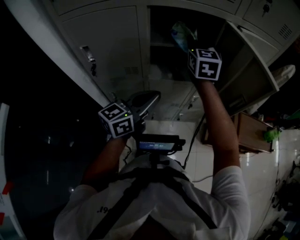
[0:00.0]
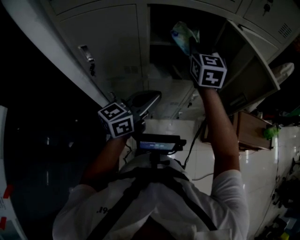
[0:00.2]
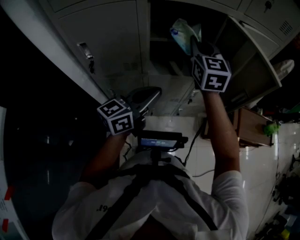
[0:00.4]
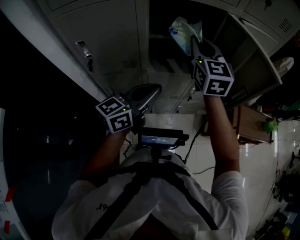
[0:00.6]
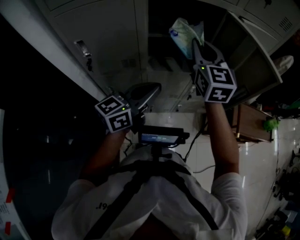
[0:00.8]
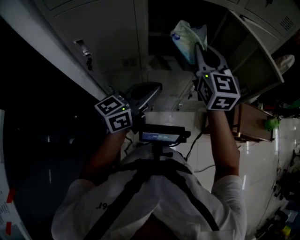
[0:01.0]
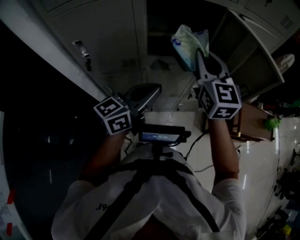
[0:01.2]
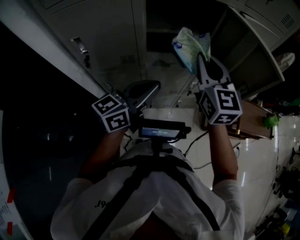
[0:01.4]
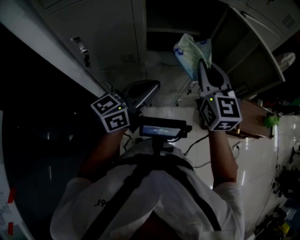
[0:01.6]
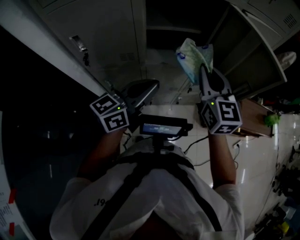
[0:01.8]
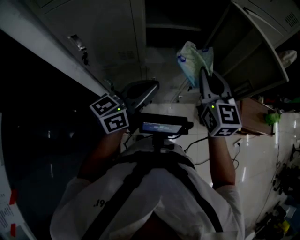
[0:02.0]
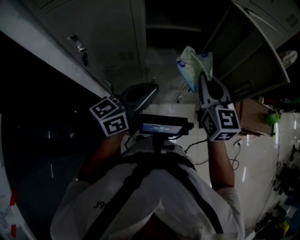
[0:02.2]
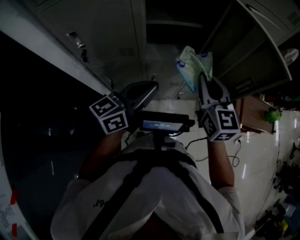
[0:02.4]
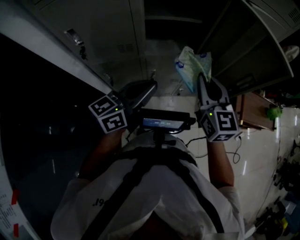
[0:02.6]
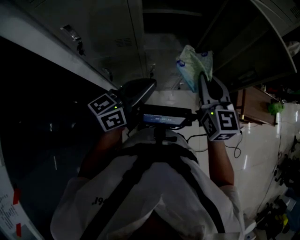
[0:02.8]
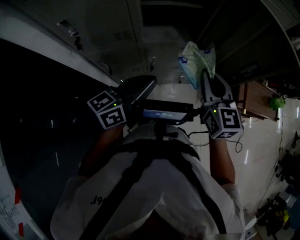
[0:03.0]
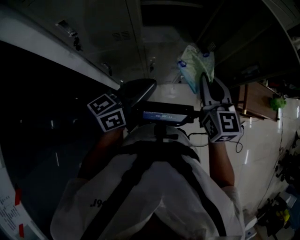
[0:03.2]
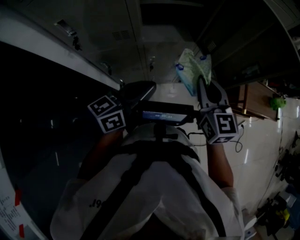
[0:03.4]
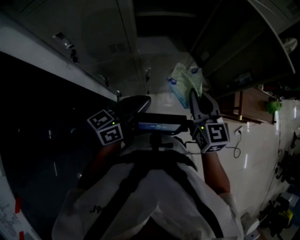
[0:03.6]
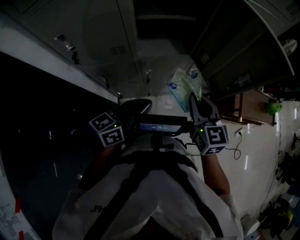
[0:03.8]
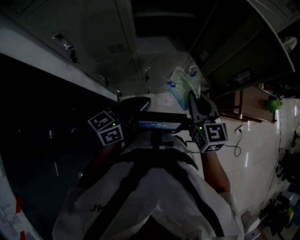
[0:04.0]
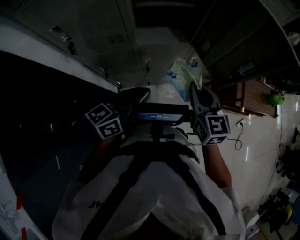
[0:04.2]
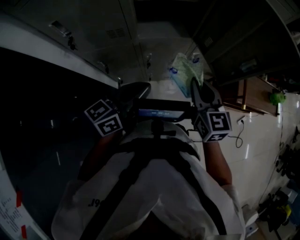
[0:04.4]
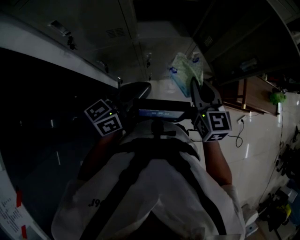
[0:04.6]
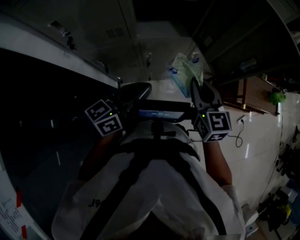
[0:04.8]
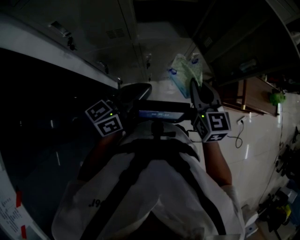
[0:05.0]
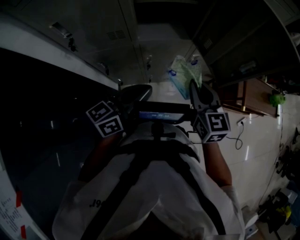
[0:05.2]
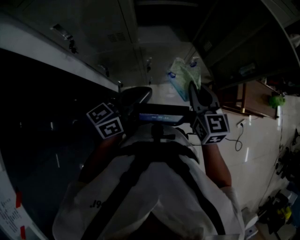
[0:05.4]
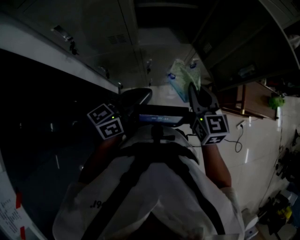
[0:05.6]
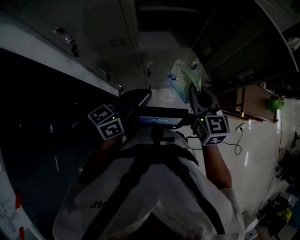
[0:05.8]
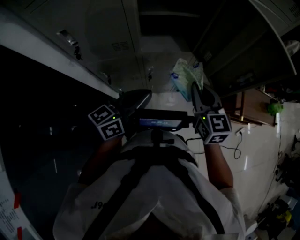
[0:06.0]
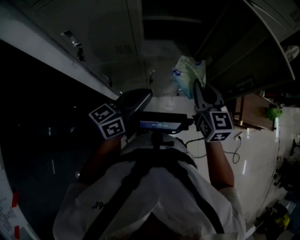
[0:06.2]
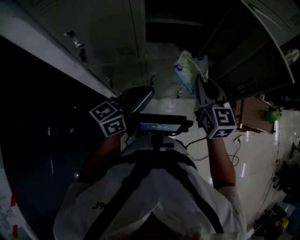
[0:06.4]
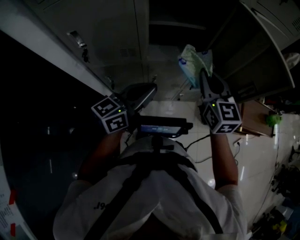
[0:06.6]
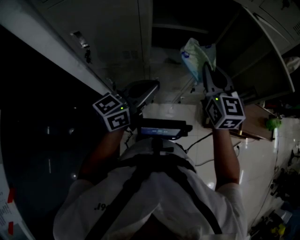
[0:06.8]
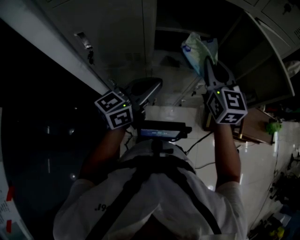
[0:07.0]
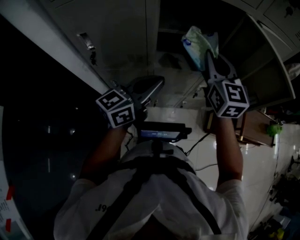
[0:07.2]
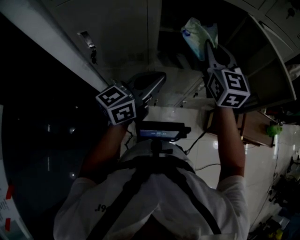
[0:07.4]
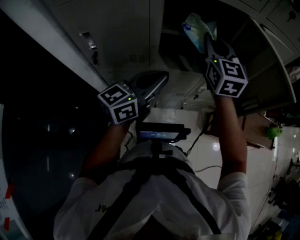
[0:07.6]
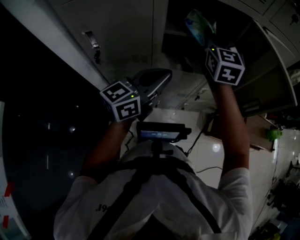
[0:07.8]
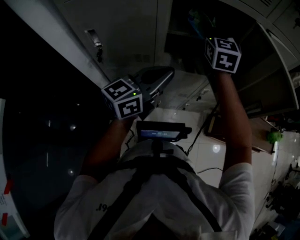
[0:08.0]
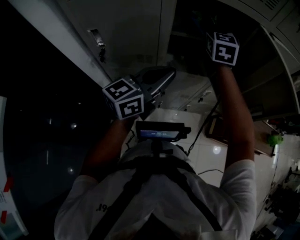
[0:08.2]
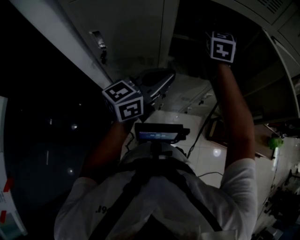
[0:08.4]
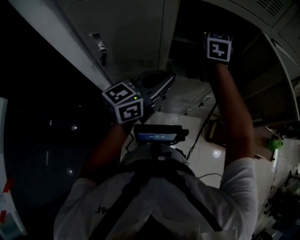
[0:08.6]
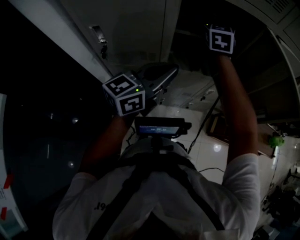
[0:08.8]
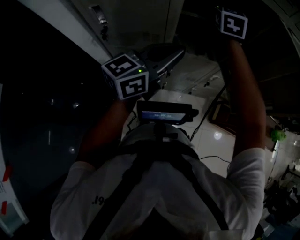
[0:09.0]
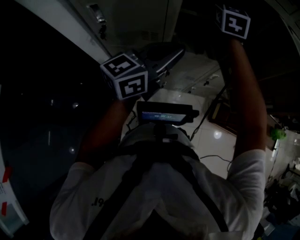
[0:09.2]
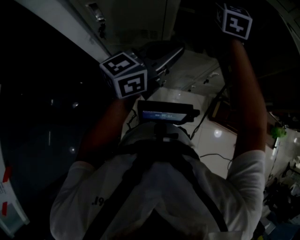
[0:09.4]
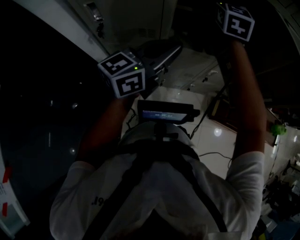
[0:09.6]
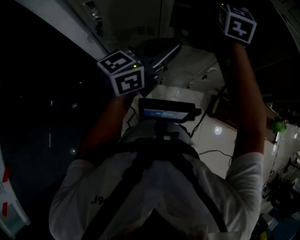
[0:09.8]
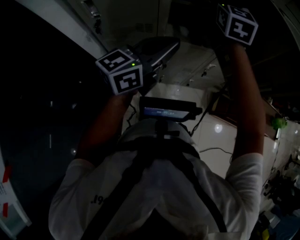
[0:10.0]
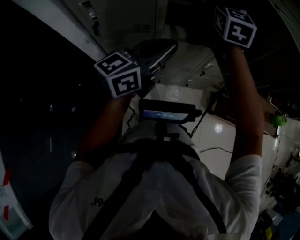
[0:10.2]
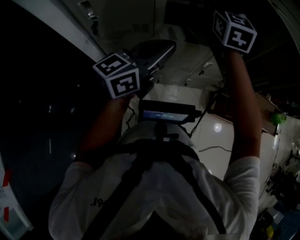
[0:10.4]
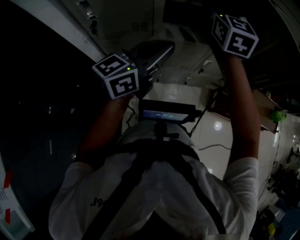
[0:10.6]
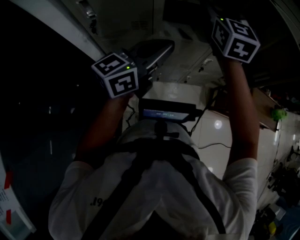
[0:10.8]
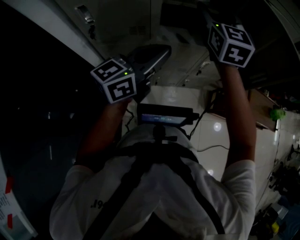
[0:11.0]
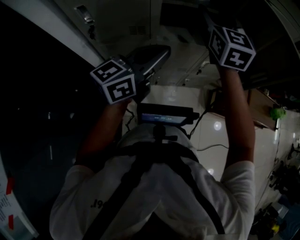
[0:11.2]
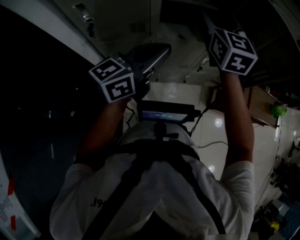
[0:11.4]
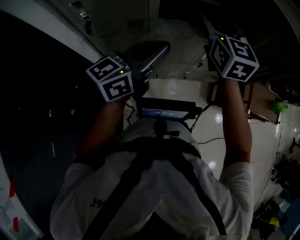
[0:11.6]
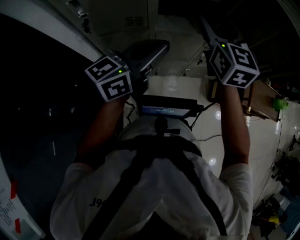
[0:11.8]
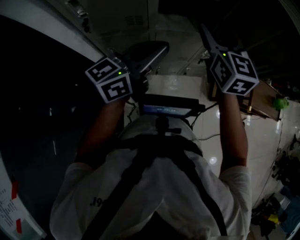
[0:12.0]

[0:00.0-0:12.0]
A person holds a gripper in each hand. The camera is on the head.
0:00.0 to 0:01.6: The right gripper moves backward and to the right, approximately 15 cm.
0:01.6 to 0:03.0: The right gripper is displaced downward and backward by some 10 cm, while the left gripper shifts some 5 cm downward.
0:03.0 to 0:04.4: The right gripper is displaced downward by roughly 5 cm.
0:04.4 to 0:06.0: The grippers move only a little.
0:06.0 to 0:07.6: The left gripper goes roughly 10 cm upward and forward; the right gripper goes roughly 25 cm forward, upward and to the left.
0:07.6 to 0:09.0: The right gripper moves forward and to the left, some 15 cm, and opens its fingers.
0:09.0 to 0:10.4: The right gripper travels backward by some 10 cm.
0:10.4 to 0:12.0: The right gripper moves backward and downward, about 10 cm.

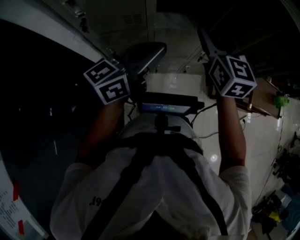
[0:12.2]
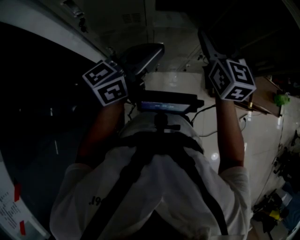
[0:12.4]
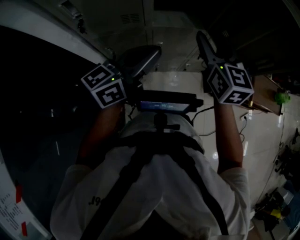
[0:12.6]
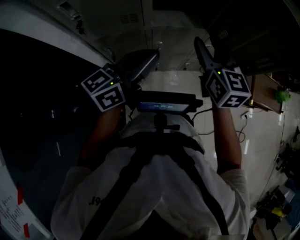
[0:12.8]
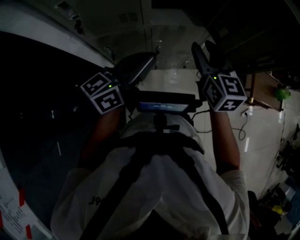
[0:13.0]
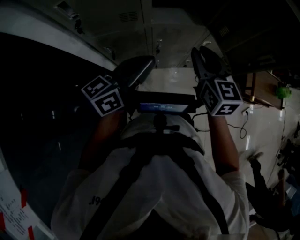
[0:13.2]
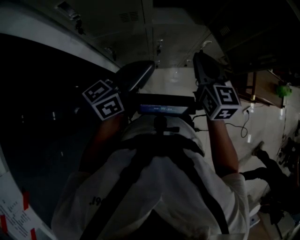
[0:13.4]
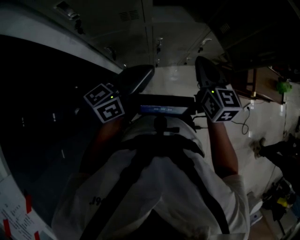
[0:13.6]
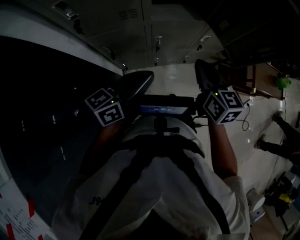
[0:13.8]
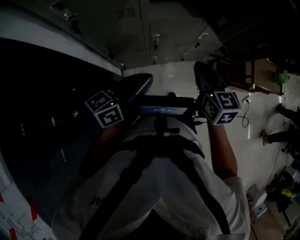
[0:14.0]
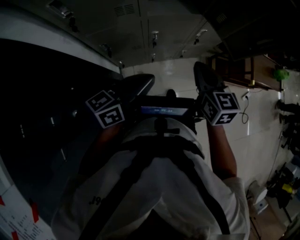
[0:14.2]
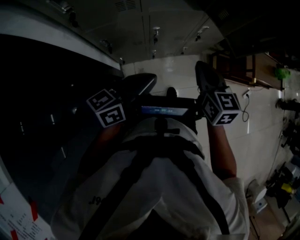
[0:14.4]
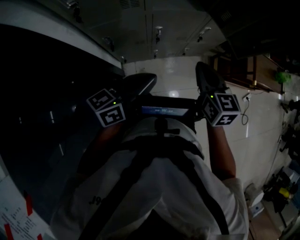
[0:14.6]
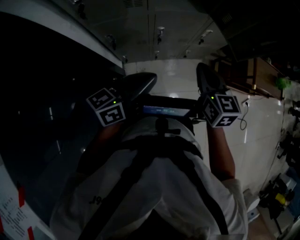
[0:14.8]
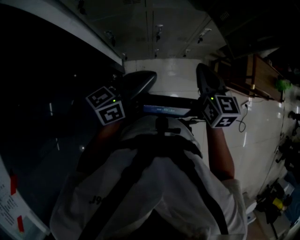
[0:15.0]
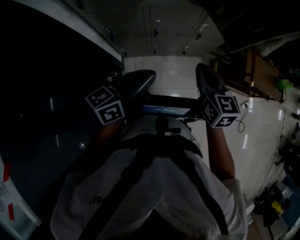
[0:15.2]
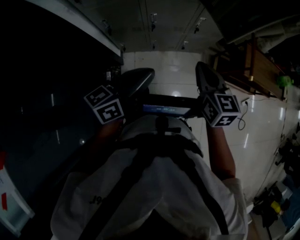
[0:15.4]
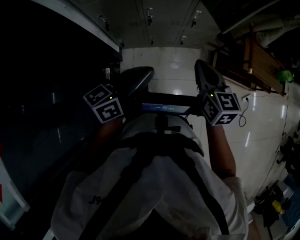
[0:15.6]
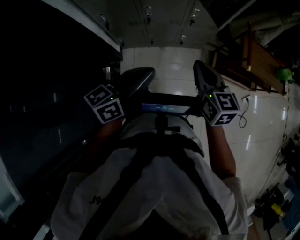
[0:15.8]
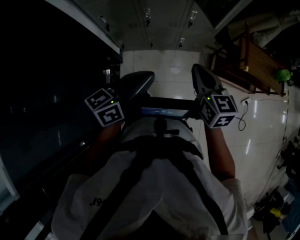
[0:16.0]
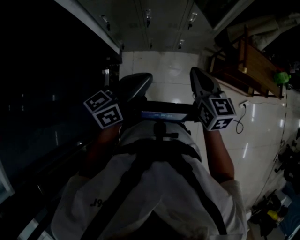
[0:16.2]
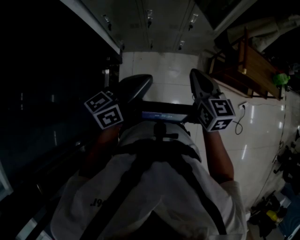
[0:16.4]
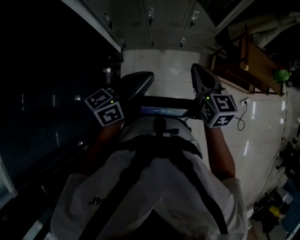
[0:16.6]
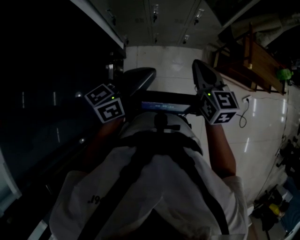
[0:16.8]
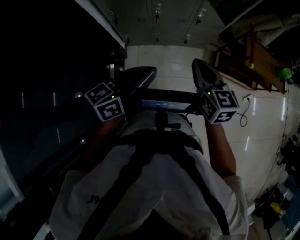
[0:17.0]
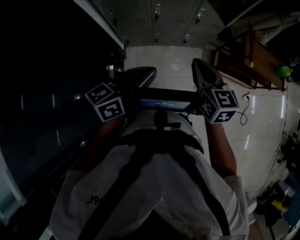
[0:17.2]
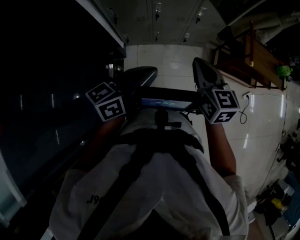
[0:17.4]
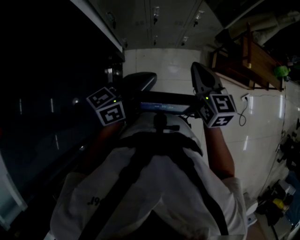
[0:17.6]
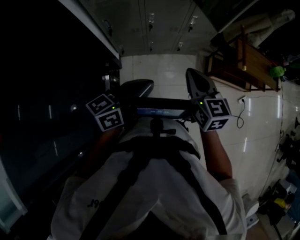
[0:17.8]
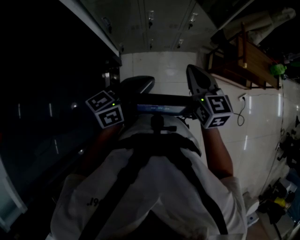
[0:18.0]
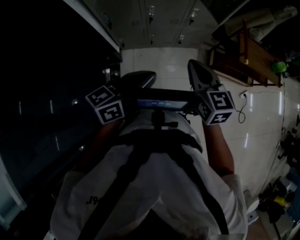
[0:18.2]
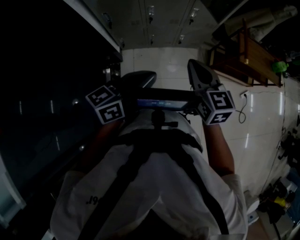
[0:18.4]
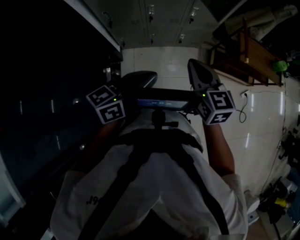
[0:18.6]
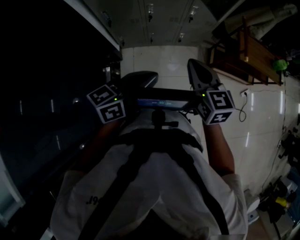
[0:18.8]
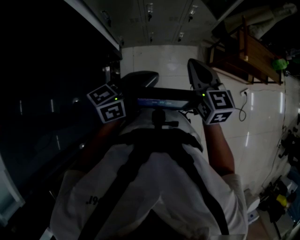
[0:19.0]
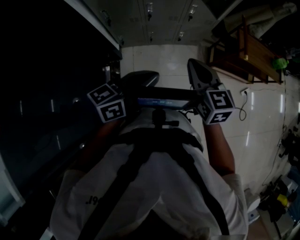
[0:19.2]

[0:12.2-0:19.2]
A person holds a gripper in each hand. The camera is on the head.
0:12.2 to 0:13.6: The left gripper moves downward and backward, approximately 10 cm. The right gripper moves downward and backward, approximately 15 cm, and closes its fingers.
0:13.6 to 0:15.0: The grippers both shift backward by about 5 cm.
0:15.0 to 0:16.4: The left gripper is displaced to the right and backward by some 20 cm; the right gripper travels backward and to the right by about 20 cm.
0:16.4 to 0:17.8: Both grippers move to the left, roughly 5 cm.
0:17.8 to 0:19.2: There are only small adjustments of the grippers.

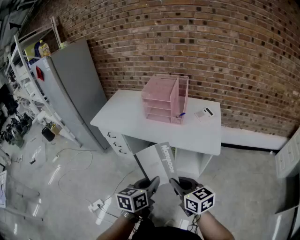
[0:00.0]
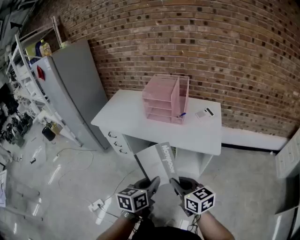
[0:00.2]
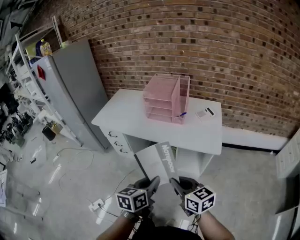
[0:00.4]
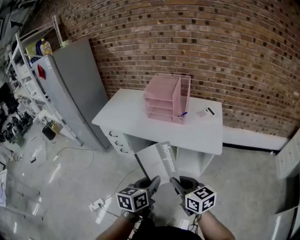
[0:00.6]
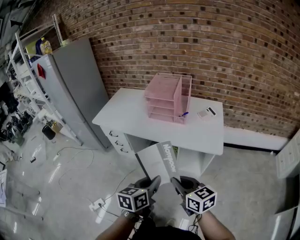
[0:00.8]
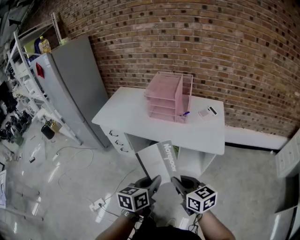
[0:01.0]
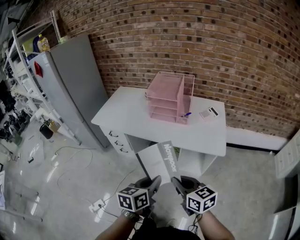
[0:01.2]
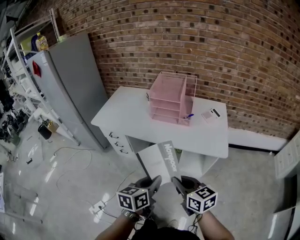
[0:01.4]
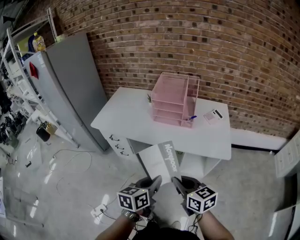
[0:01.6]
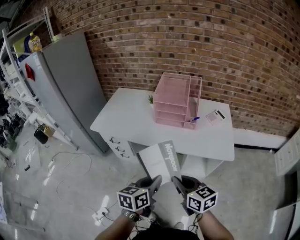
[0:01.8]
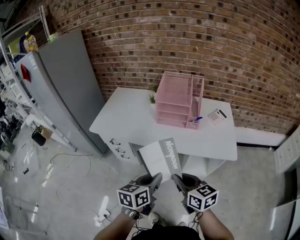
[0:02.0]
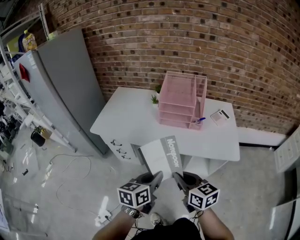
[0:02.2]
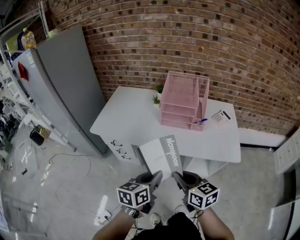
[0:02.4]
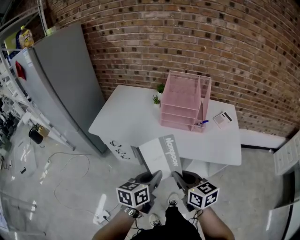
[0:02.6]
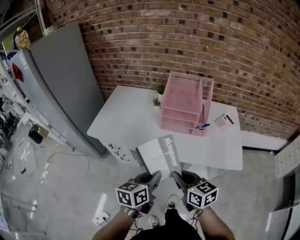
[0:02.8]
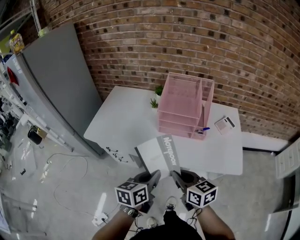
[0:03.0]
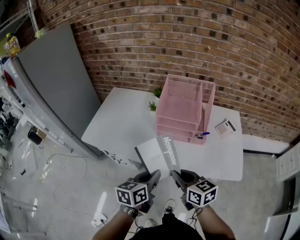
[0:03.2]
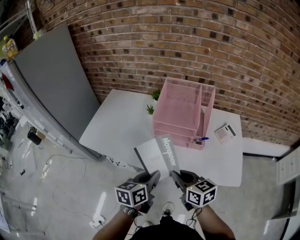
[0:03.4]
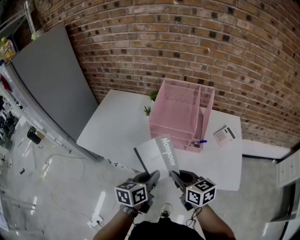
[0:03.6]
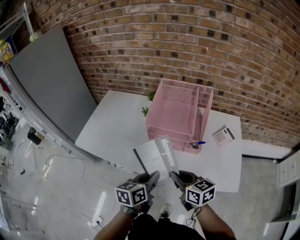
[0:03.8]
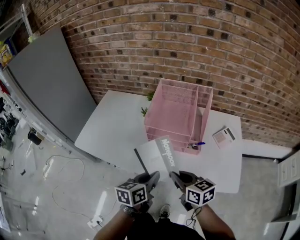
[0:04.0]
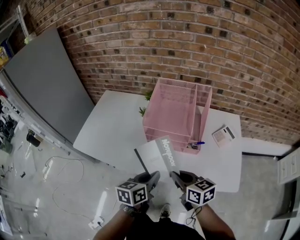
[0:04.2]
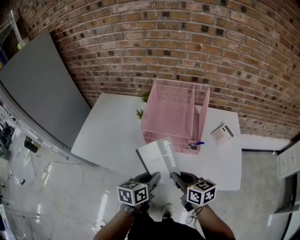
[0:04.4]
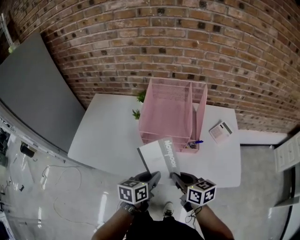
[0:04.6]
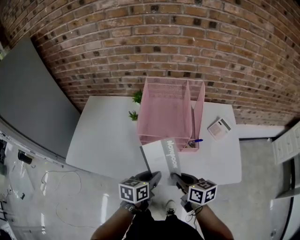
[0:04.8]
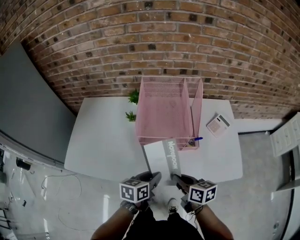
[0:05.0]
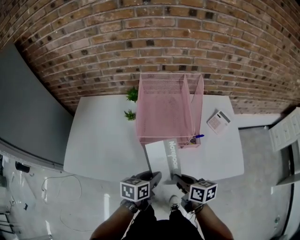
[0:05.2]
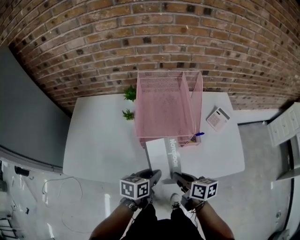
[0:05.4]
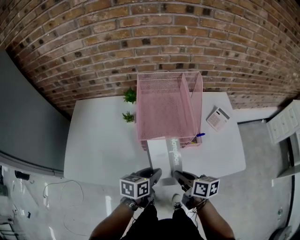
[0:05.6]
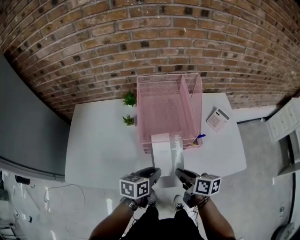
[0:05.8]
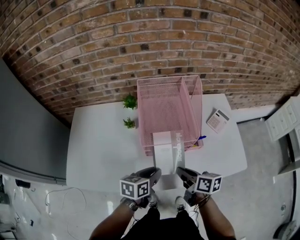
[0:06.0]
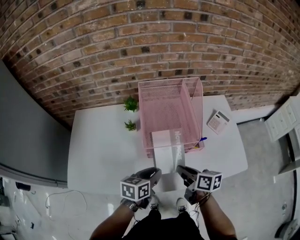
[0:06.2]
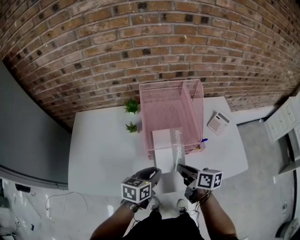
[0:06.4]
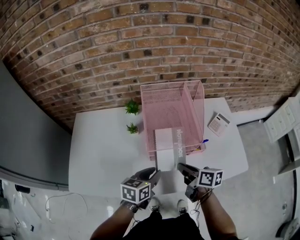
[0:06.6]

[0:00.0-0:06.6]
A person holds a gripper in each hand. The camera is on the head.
0:00.0 to 0:01.6: Both grippers travel together to the left and forward, some 10 cm.
0:01.6 to 0:03.2: The two grippers go about 25 cm forward.
0:03.2 to 0:05.0: Both grippers travel together forward and downward, about 15 cm. The right gripper turns by roughly 30 degrees, while the left gripper changes its angle by some 20 degrees.
0:05.0 to 0:06.6: The right gripper moves forward, about 10 cm. Meanwhile the left gripper moves forward and to the left, roughly 10 cm.
